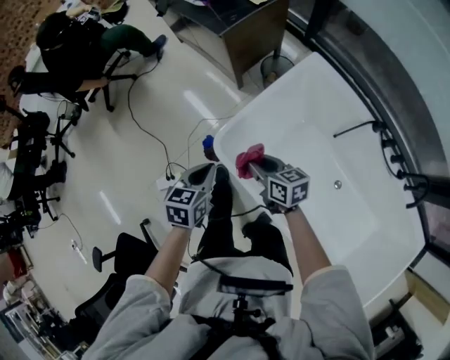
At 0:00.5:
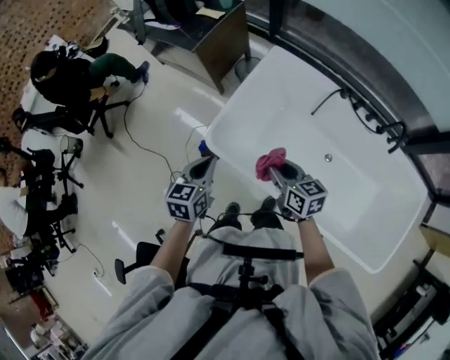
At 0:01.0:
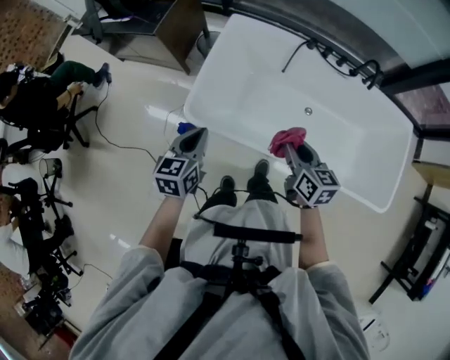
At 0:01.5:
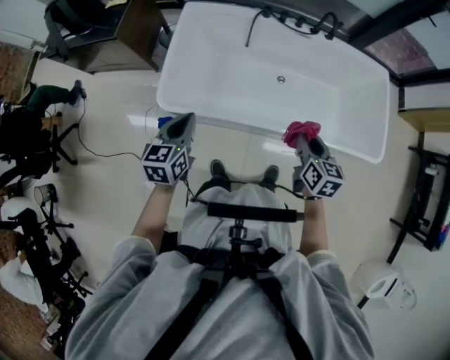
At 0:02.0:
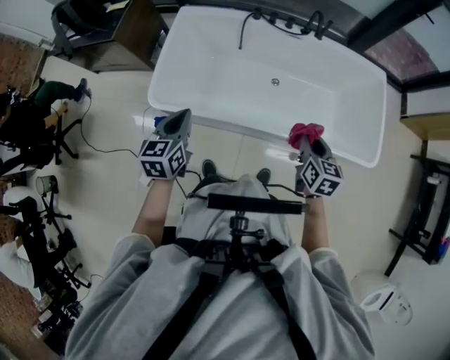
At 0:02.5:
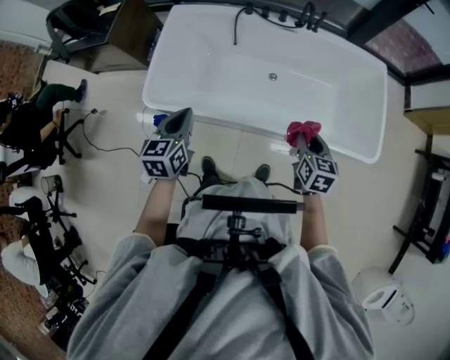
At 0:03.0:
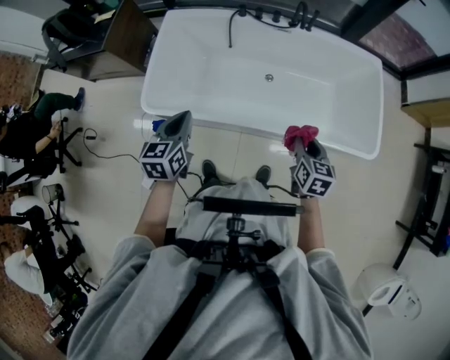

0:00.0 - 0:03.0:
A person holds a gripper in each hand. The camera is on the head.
0:00.0 - 0:01.5: The right gripper changes place by roughly 50 cm, and swivels roughly 70 degrees, while the left gripper ends up roughly 20 cm from where it was, and rotates some 40 degrees.
0:01.5 - 0:03.0: Both grippers move to the right, approximately 15 cm.

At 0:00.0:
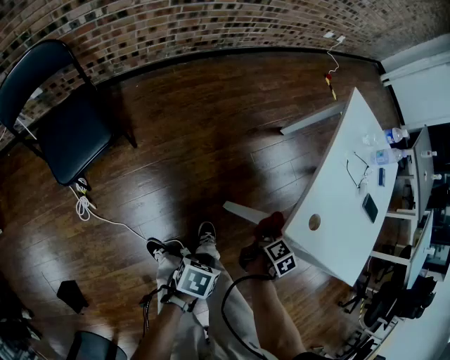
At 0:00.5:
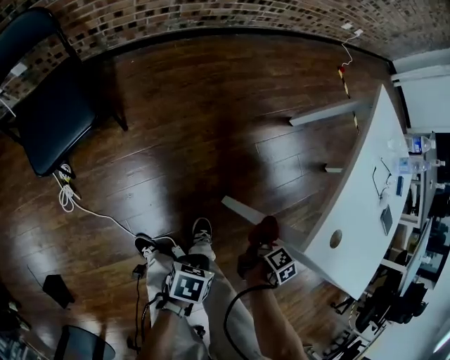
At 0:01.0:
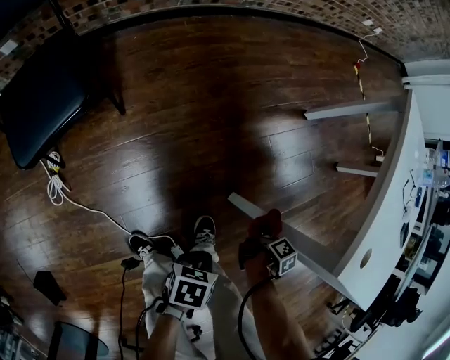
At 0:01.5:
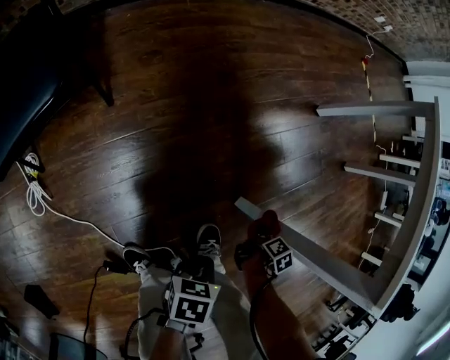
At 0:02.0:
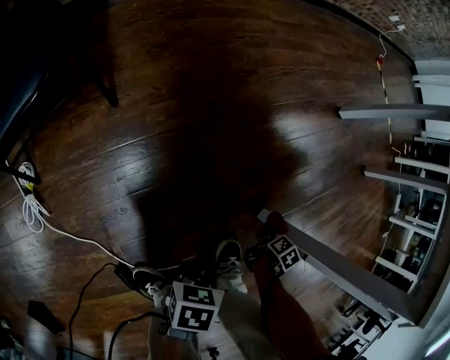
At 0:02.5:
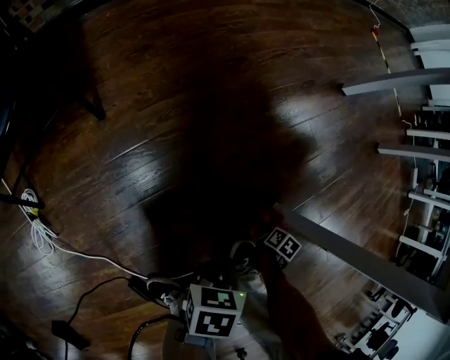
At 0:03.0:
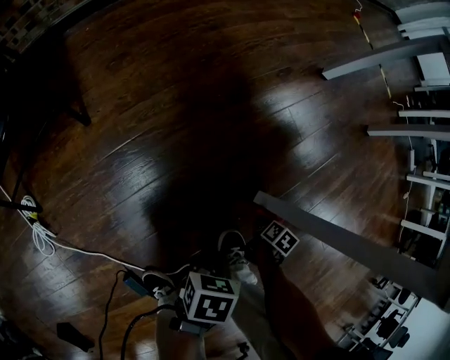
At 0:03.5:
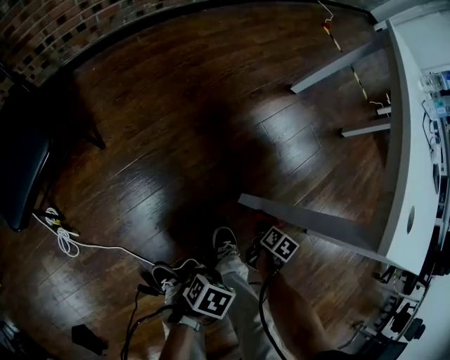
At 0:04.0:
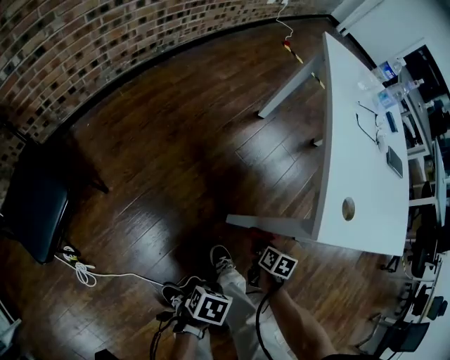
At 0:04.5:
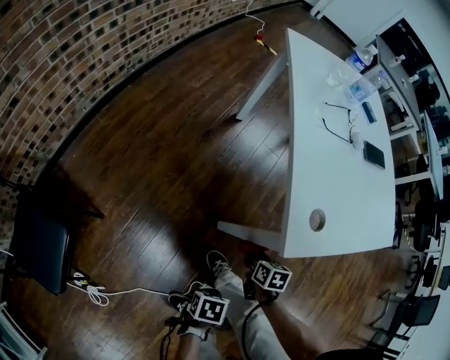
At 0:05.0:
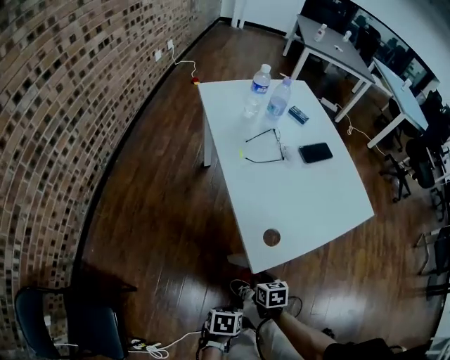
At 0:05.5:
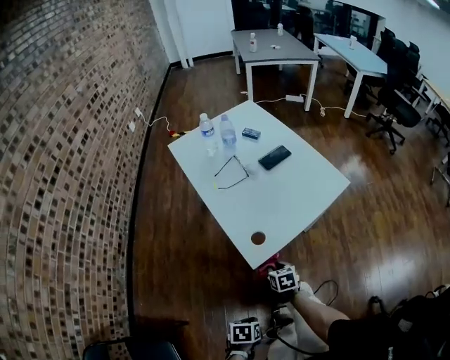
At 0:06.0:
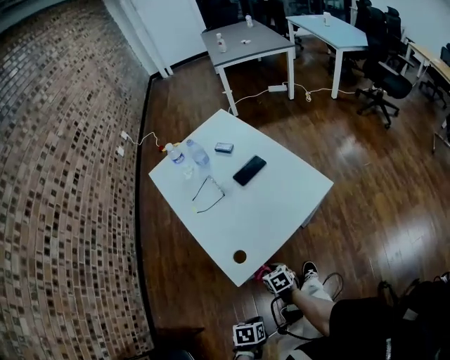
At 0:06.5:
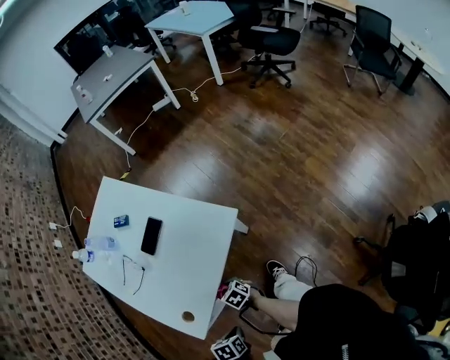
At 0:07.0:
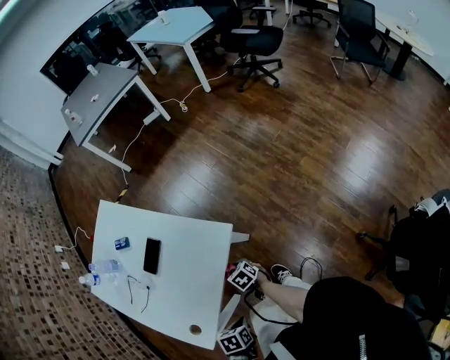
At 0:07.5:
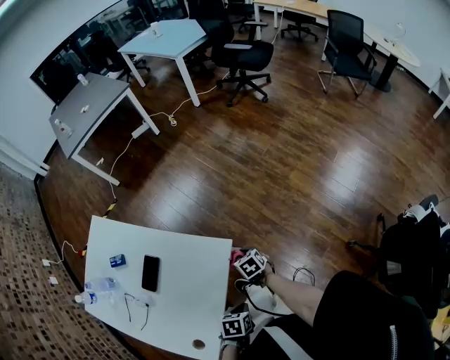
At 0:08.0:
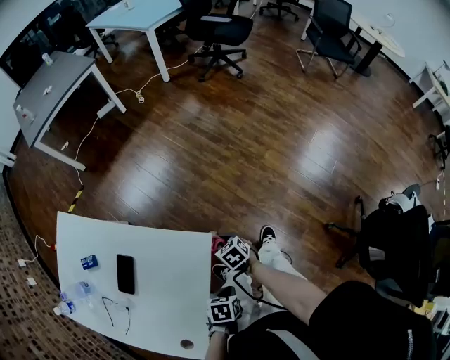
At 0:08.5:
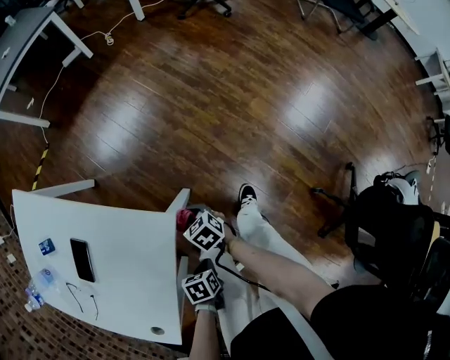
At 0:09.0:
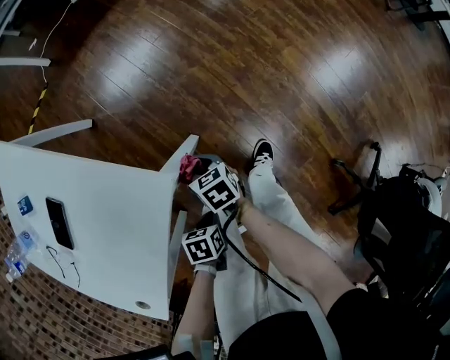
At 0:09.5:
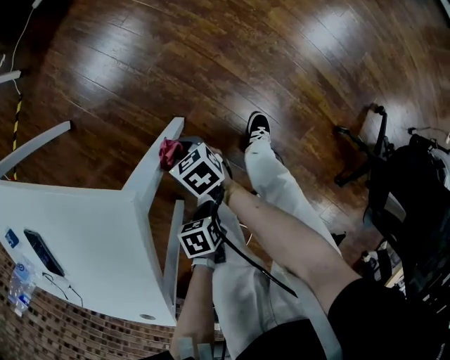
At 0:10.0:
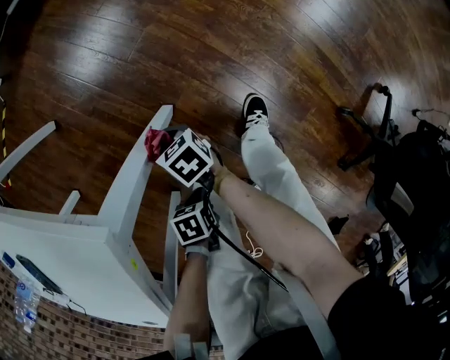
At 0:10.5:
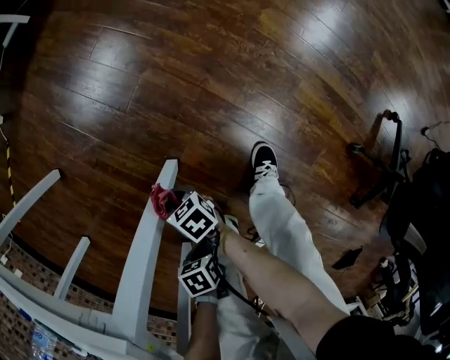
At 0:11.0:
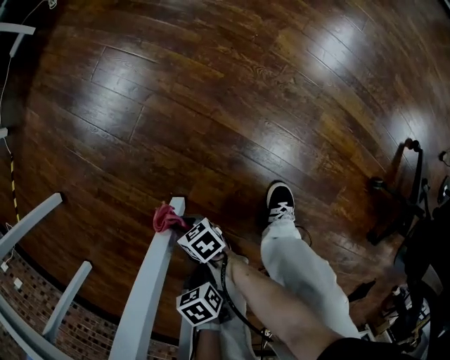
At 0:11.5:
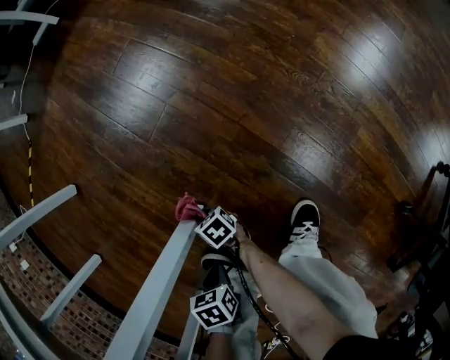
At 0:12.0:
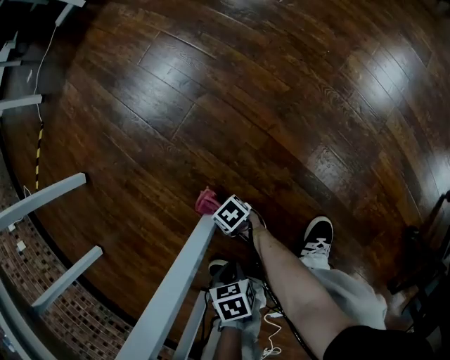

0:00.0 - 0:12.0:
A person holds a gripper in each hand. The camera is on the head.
0:00.0 - 0:02.0: The right gripper shifts about 50 cm downward, and swivels roughly 20 degrees.
0:02.0 - 0:04.0: The right gripper goes approximately 30 cm upward.
0:04.0 - 0:06.0: The right gripper shifts some 30 cm upward.
0:06.0 - 0:08.0: The right gripper ends up some 40 cm from where it was, and changes its angle by roughly 30 degrees.
0:08.0 - 0:10.0: The right gripper travels downward by some 25 cm, and swivels about 20 degrees.
0:10.0 - 0:12.0: The right gripper heads downward, covering about 40 cm, and rotates some 20 degrees.

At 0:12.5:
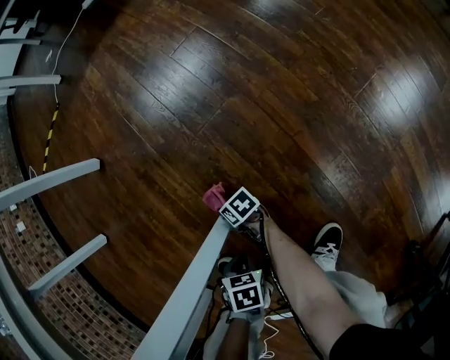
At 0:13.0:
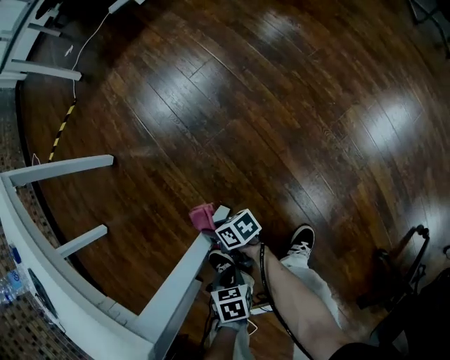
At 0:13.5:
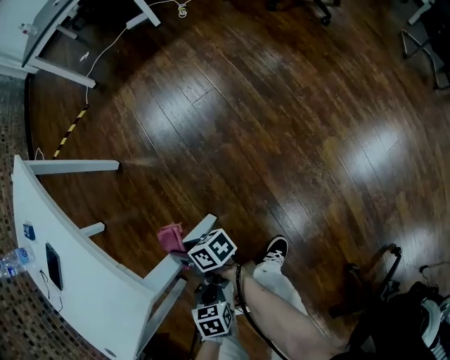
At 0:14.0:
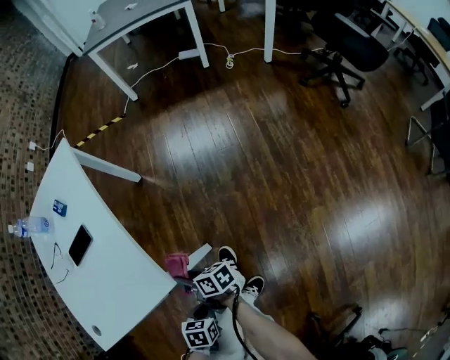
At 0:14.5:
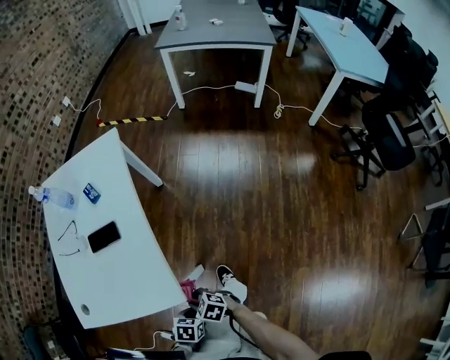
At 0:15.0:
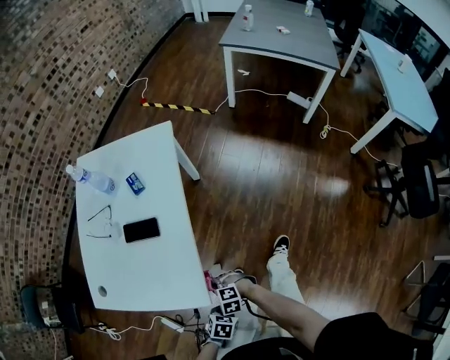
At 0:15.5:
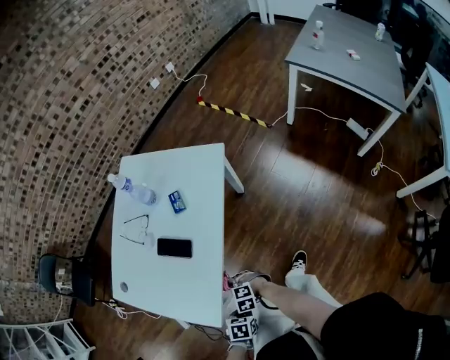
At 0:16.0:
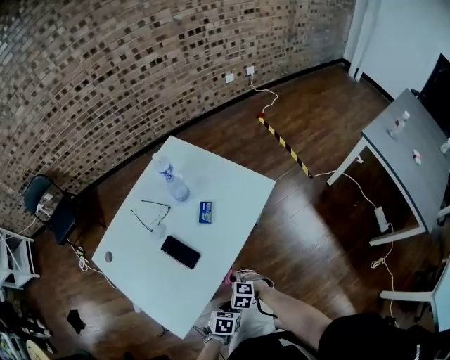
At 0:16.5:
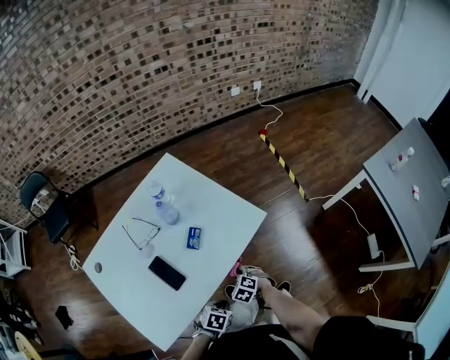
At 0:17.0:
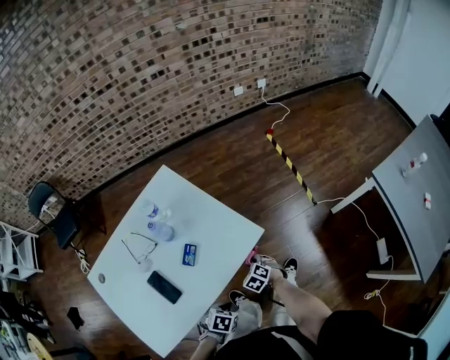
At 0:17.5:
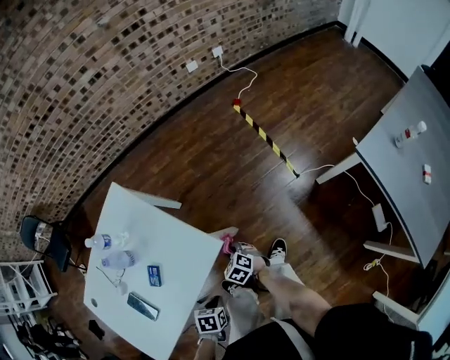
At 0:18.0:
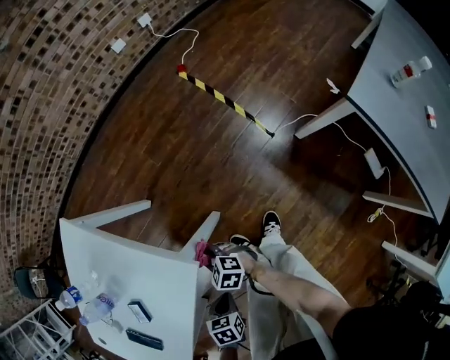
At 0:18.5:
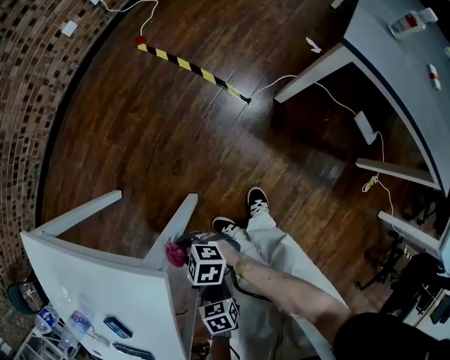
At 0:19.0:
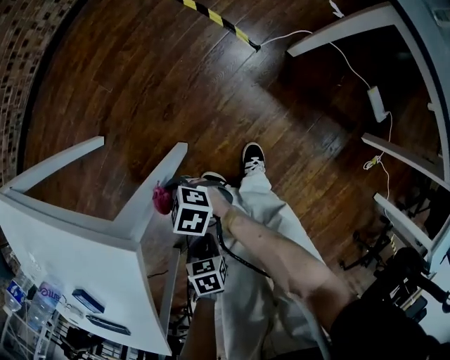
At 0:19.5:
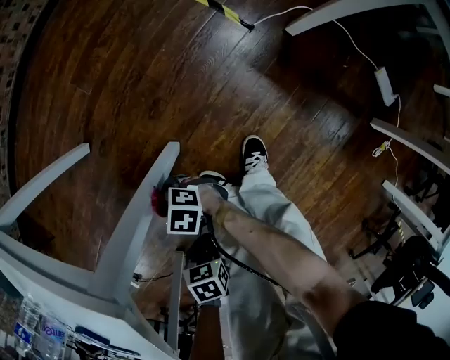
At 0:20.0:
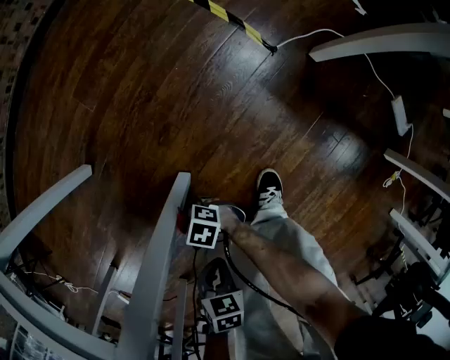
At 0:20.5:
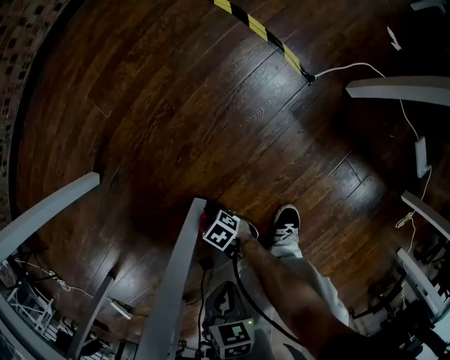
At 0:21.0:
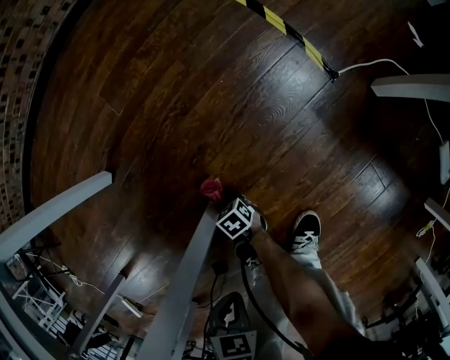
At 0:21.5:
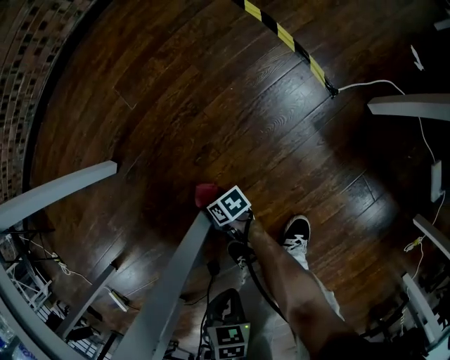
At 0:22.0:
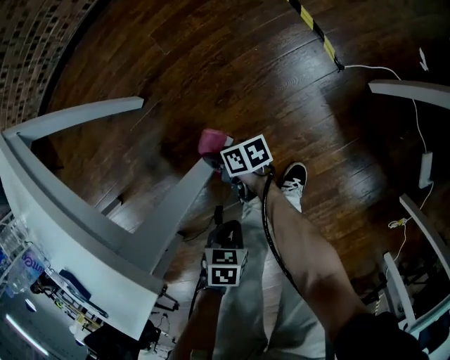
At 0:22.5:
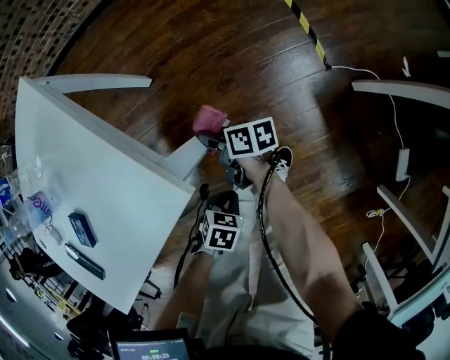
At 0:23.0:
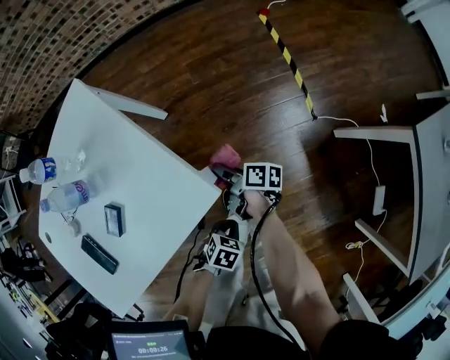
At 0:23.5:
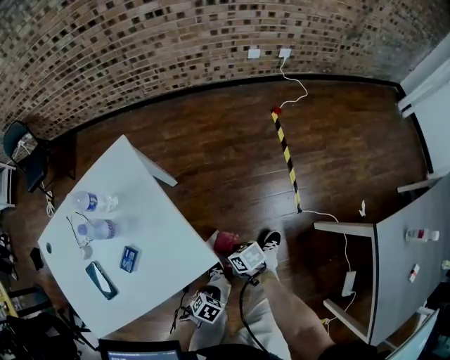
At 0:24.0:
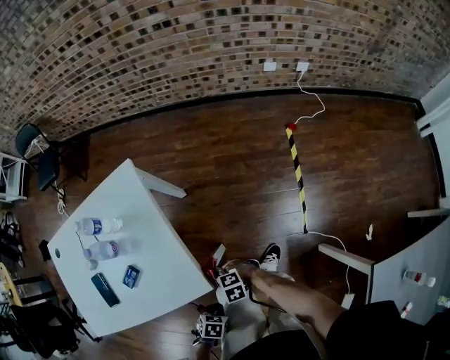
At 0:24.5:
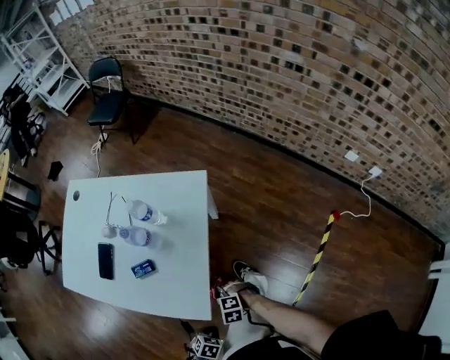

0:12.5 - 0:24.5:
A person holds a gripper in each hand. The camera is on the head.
0:12.5 - 0:14.5: The right gripper heads upward, covering roughly 60 cm, and twists roughly 70 degrees counterclockwise, seen from behind.
0:14.5 - 0:16.5: The right gripper moves some 50 cm, and rolls counterclockwise, seen from behind, by roughly 60 degrees.
0:16.5 - 0:18.5: The right gripper changes place by roughly 30 cm, and swivels about 40 degrees.
0:18.5 - 0:20.5: The right gripper is displaced downward by some 50 cm, and rotates some 30 degrees.
0:20.5 - 0:22.5: The right gripper shifts about 40 cm upward, and swivels roughly 40 degrees.
0:22.5 - 0:24.5: The right gripper travels upward by about 15 cm, and rolls counterclockwise, seen from behind, by some 120 degrees.
